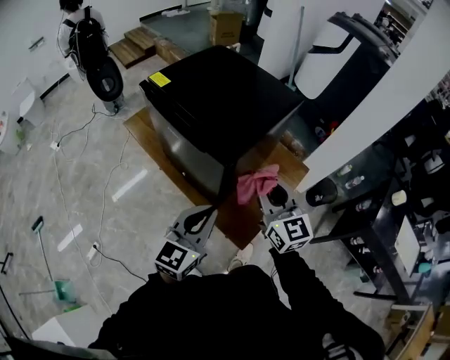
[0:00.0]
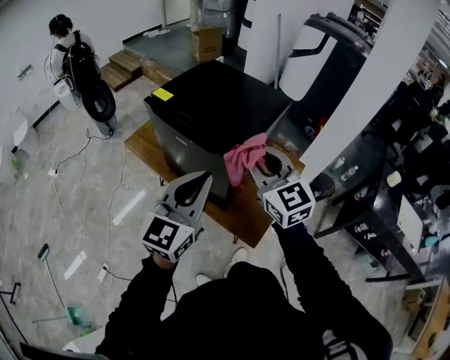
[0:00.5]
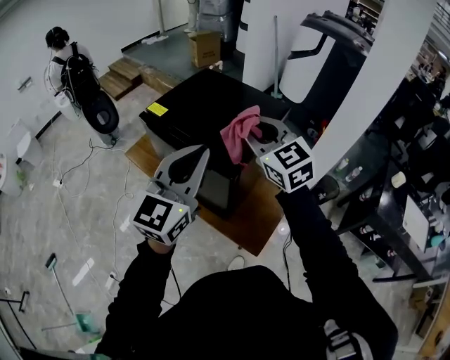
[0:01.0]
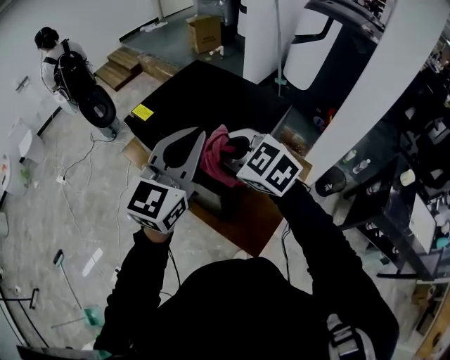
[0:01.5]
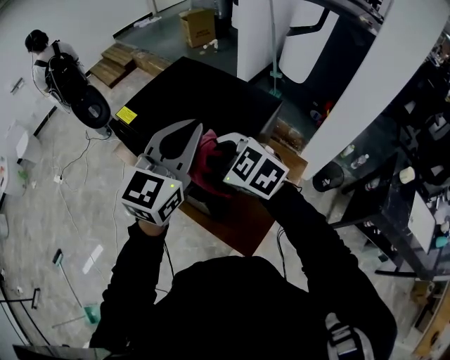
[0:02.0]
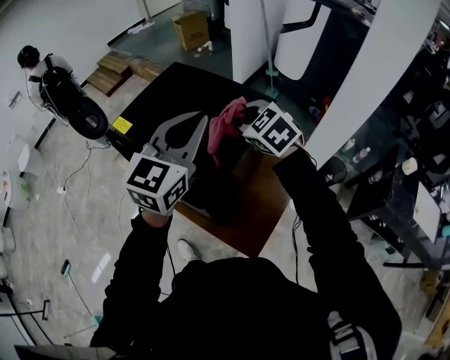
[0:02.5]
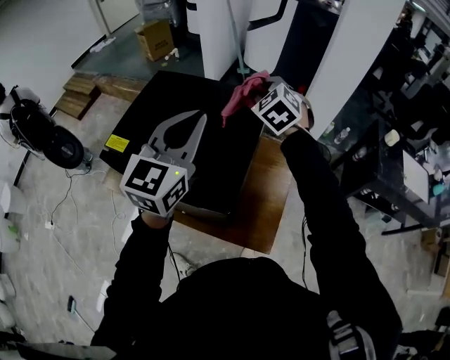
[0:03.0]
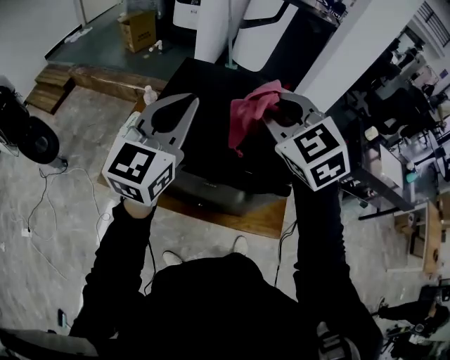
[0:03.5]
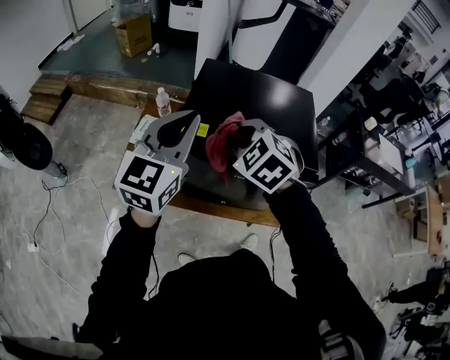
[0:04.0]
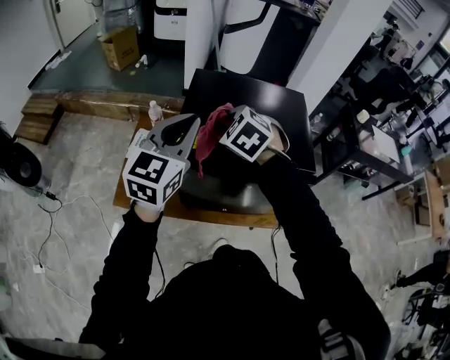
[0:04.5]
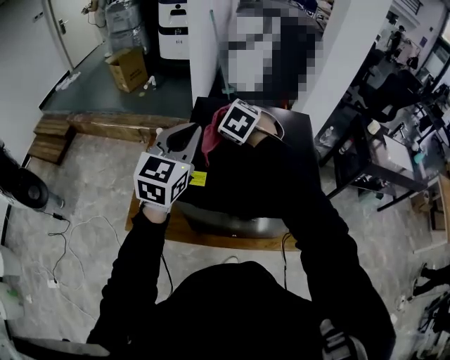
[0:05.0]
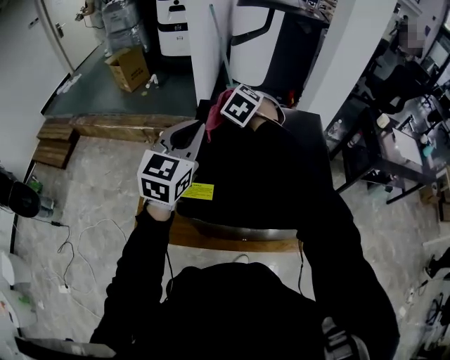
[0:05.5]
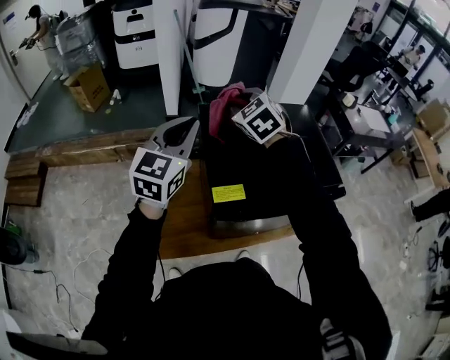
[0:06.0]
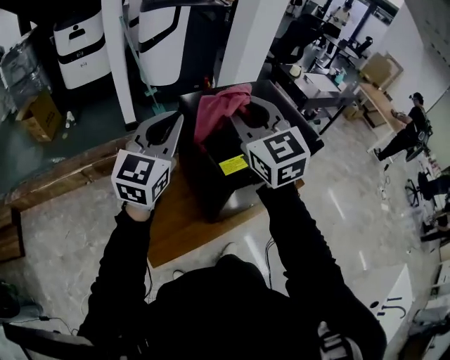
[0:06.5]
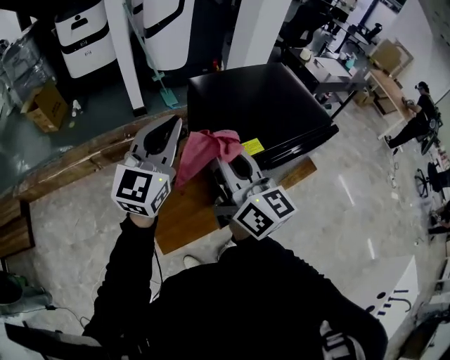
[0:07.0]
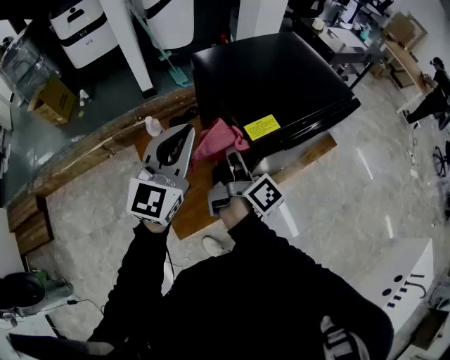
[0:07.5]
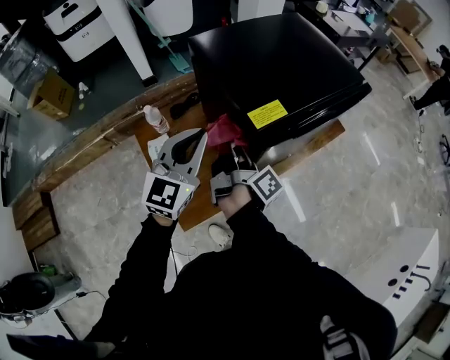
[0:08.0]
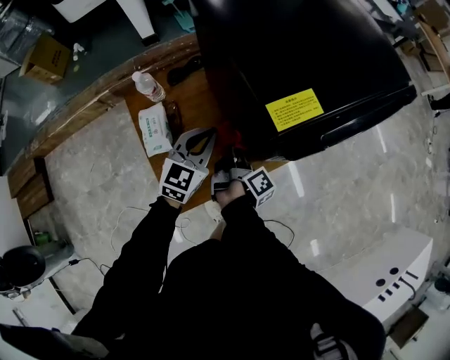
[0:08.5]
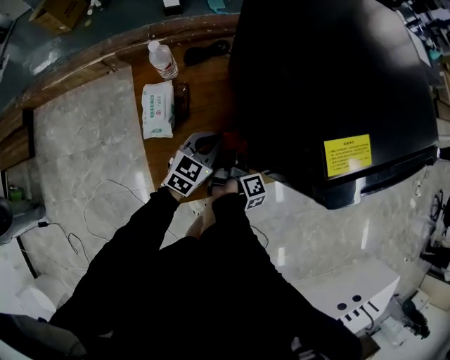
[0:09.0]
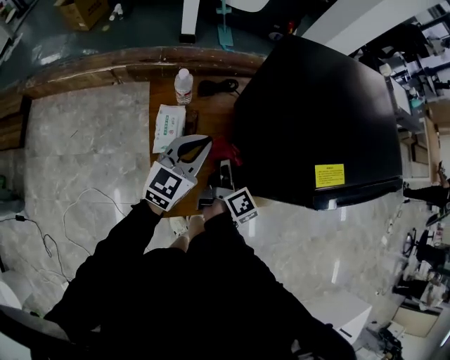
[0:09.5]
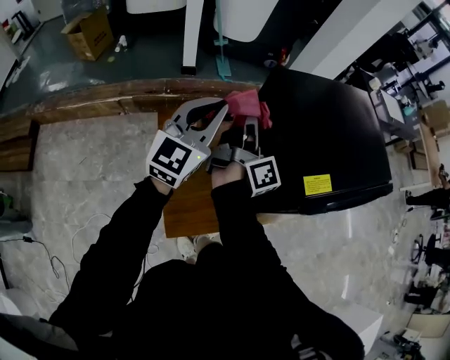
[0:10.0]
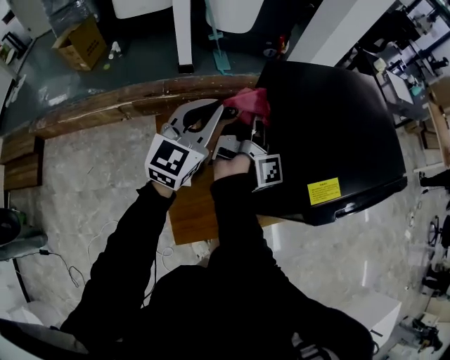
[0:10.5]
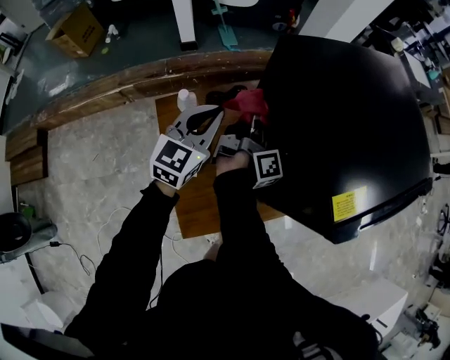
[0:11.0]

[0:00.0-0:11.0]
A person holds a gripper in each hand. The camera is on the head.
0:00.0 to 0:02.0: The left gripper heads forward and upward, covering some 30 cm. The right gripper heads forward and to the left, covering some 15 cm, moves about 15 cm upward and comes back, and tilts its fingers roughly 30 degrees downward.
0:02.0 to 0:03.5: The right gripper ends up roughly 20 cm from where it was, and turns by roughly 50 degrees. Meanwhile the left gripper ends up approximately 25 cm from where it was, and changes its angle by approximately 20 degrees.
0:03.5 to 0:05.5: The left gripper heads forward and to the left, covering approximately 20 cm. Meanwhile the right gripper travels forward, to the left and downward by about 35 cm, and turns by roughly 30 degrees.
0:05.5 to 0:07.5: The right gripper travels upward and back again, about 15 cm each way, and rolls clockwise, seen from behind, by about 110 degrees. Meanwhile the left gripper ends up roughly 20 cm from where it was, and rotates some 40 degrees.
0:07.5 to 0:09.0: Both grippers move downward, roughly 40 cm. The right gripper points its fingers some 30 degrees further downward; the left gripper tilts its fingers approximately 30 degrees downward.
0:09.0 to 0:11.0: The right gripper heads upward, forward and to the left, covering some 30 cm, and changes its angle by roughly 30 degrees. The left gripper moves upward, to the left and forward, about 30 cm.

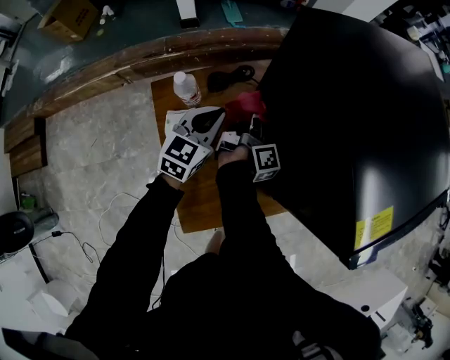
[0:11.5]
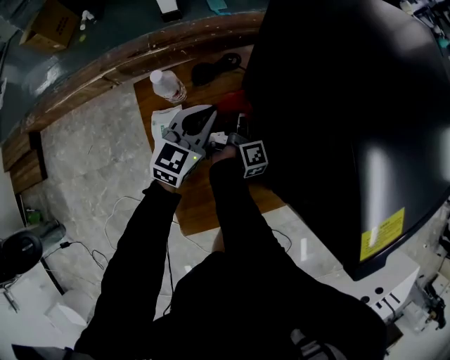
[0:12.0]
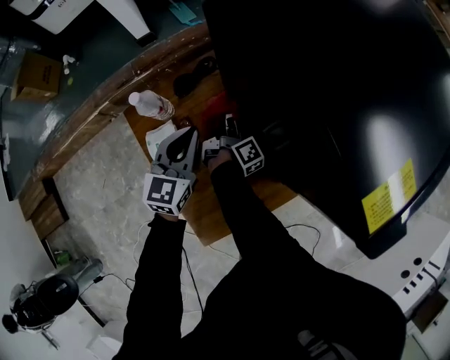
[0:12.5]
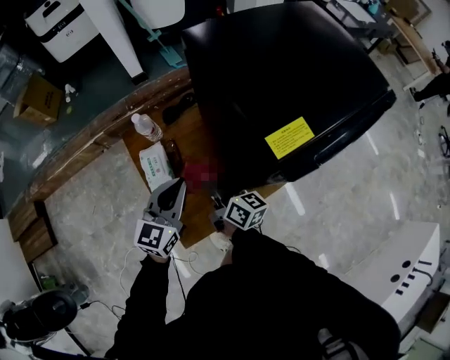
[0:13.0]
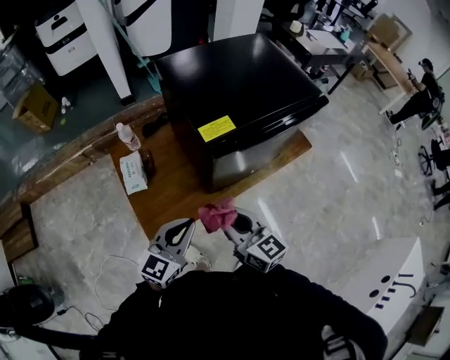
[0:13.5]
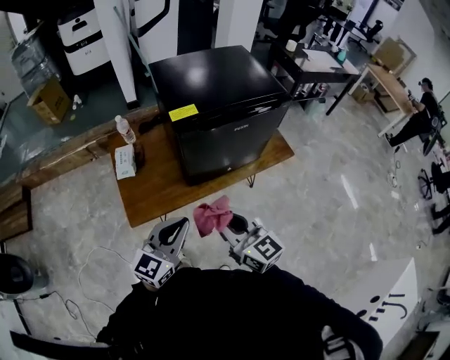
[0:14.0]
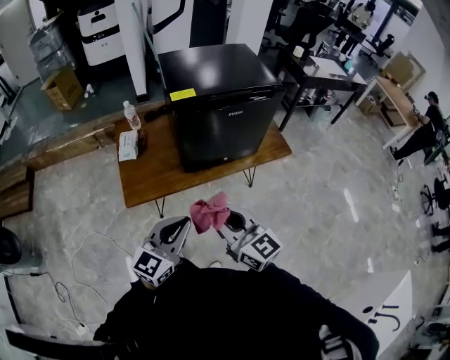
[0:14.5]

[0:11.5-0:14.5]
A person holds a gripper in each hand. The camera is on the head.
0:11.5 to 0:13.0: The left gripper is displaced backward, to the right and upward by some 20 cm; the right gripper travels backward and upward by roughly 25 cm, and rotates approximately 60 degrees.
0:13.0 to 0:14.5: Both grippers are carried backward and to the right, some 50 cm. The right gripper shifts approximately 25 cm upward, and changes its angle by some 40 degrees.

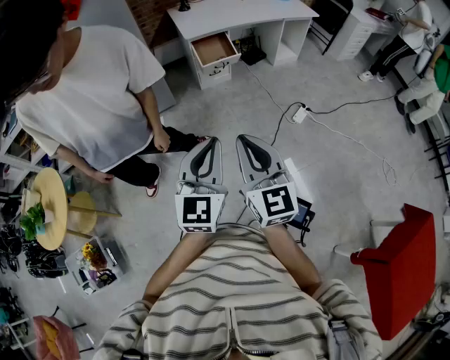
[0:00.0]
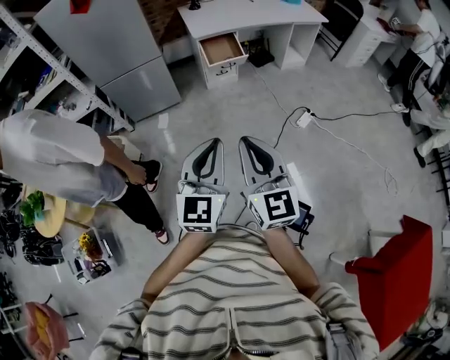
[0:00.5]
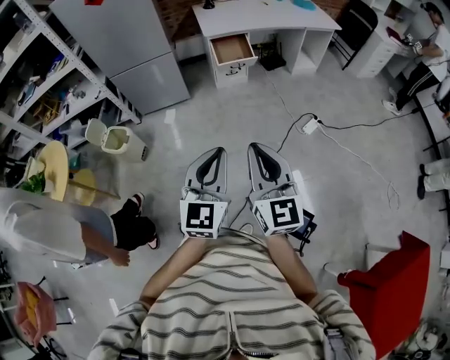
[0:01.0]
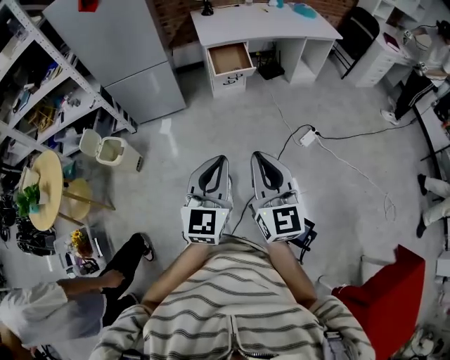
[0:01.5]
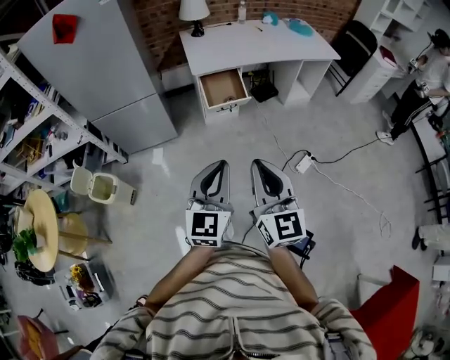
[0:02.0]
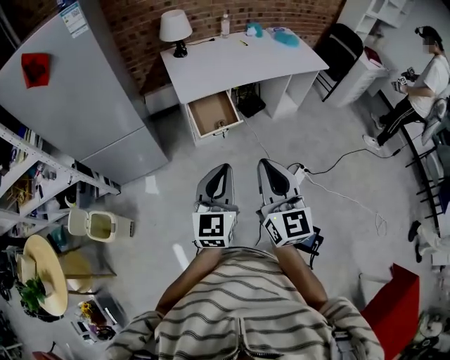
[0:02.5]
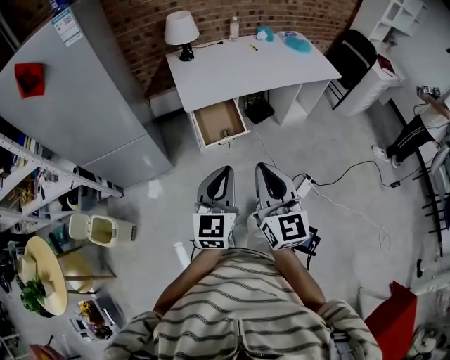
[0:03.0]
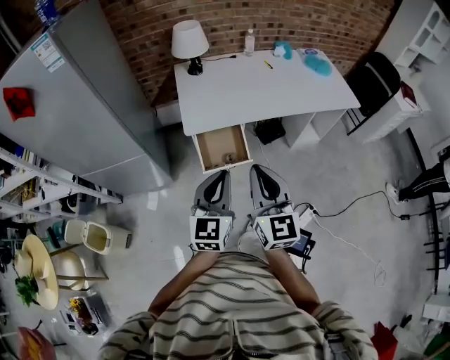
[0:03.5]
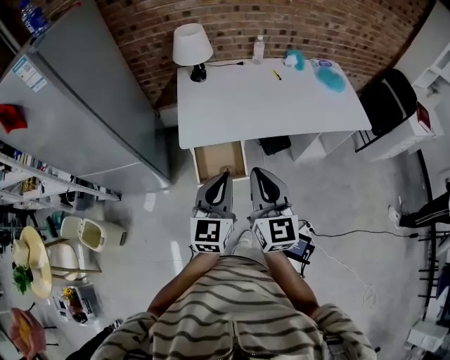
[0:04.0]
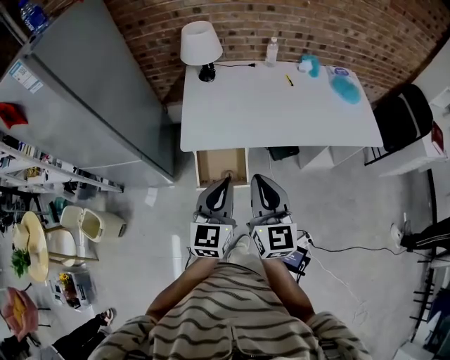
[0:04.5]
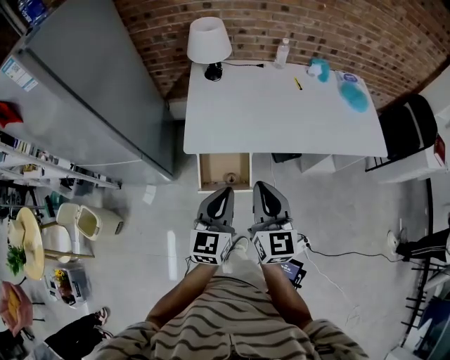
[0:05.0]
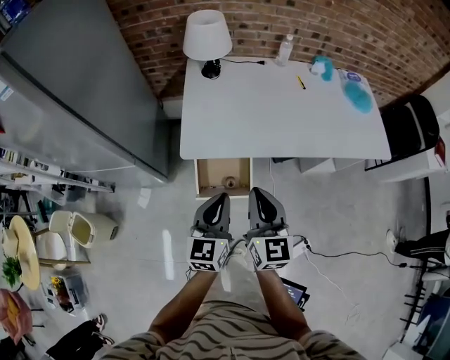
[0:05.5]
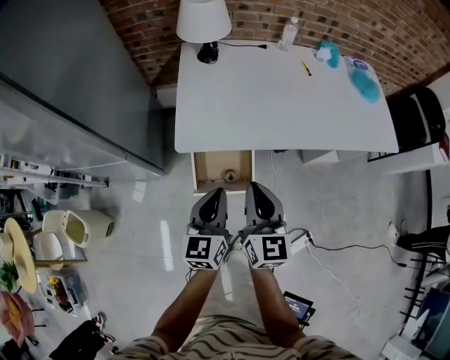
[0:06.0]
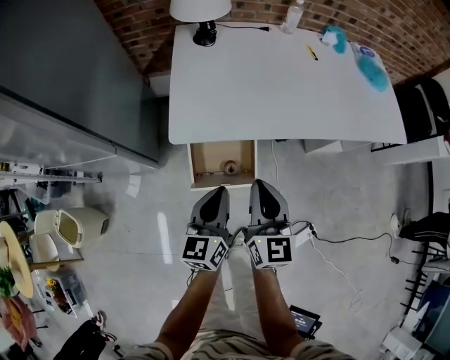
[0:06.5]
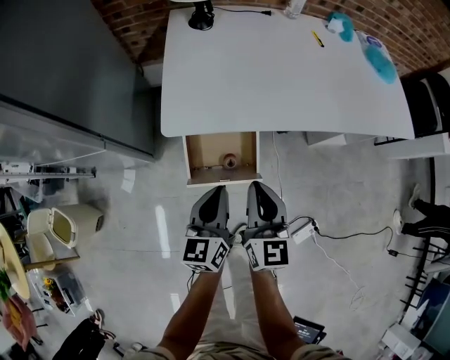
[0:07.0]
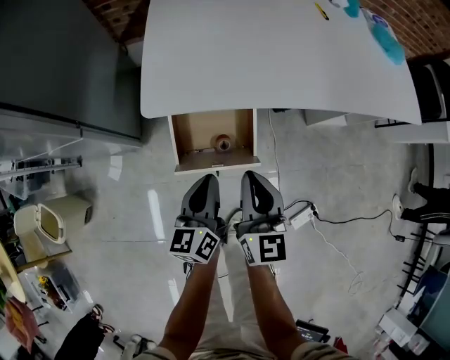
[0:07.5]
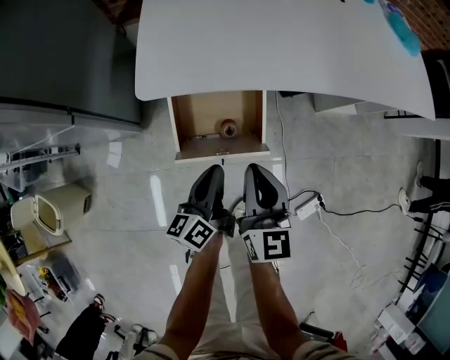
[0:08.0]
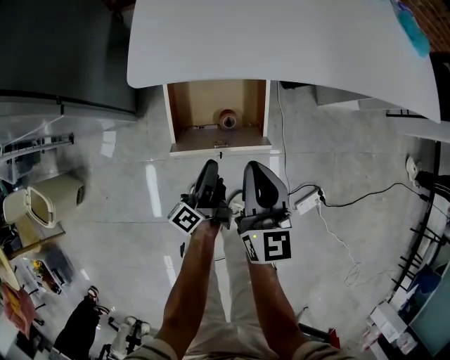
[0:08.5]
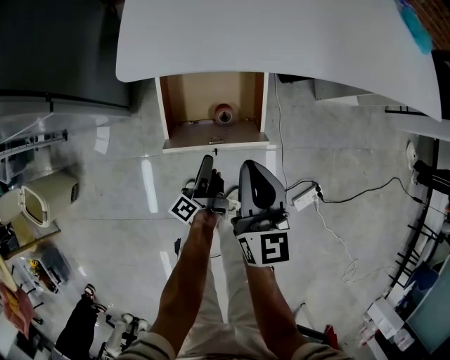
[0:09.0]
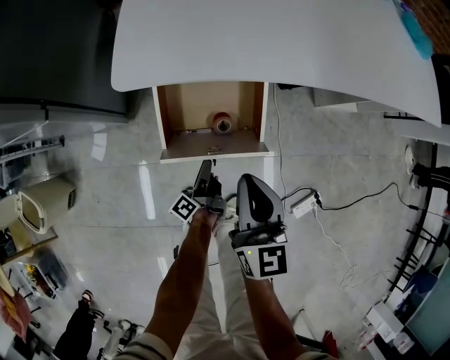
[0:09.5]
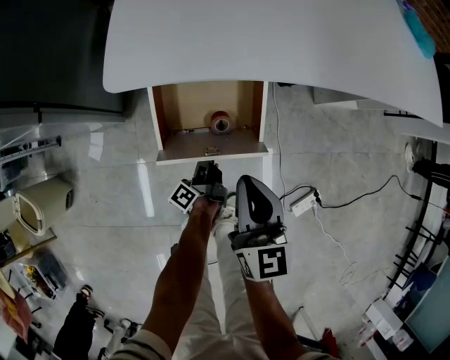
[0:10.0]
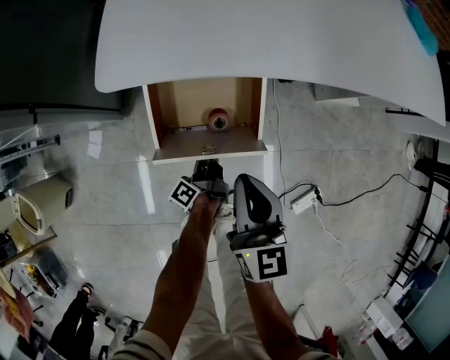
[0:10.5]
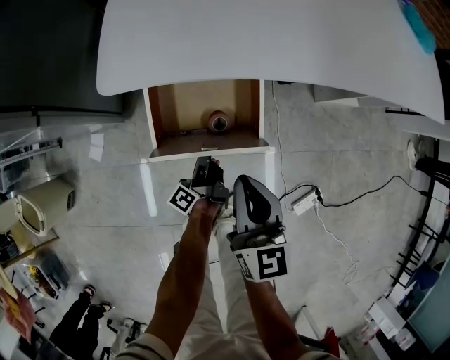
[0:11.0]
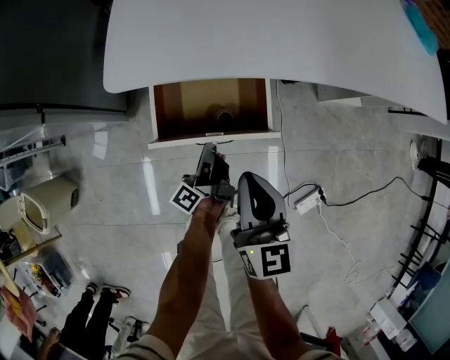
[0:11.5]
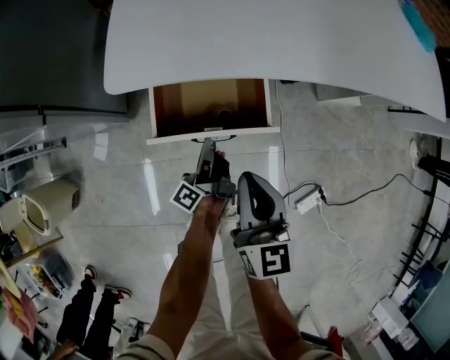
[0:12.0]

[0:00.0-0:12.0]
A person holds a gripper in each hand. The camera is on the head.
0:00.0 to 0:02.0: Both grippers move forward, roughly 25 cm.
0:02.0 to 0:04.0: The pair of grippers is taken forward, approximately 50 cm.
0:04.0 to 0:06.0: Both grippers travel together downward and forward, roughly 20 cm.
0:06.0 to 0:08.0: The two grippers go some 25 cm downward. The left gripper swivels about 40 degrees.
0:08.0 to 0:10.0: The right gripper goes about 5 cm downward, while the left gripper goes approximately 25 cm downward, changes its angle by roughly 40 degrees, and opens up.
0:10.0 to 0:12.0: The left gripper travels upward by some 10 cm, and closes.
